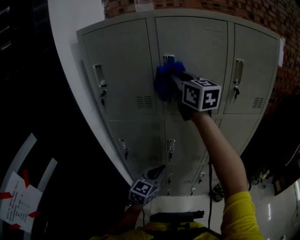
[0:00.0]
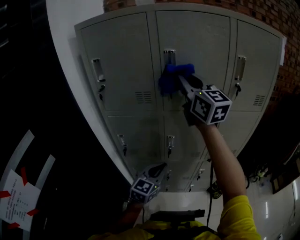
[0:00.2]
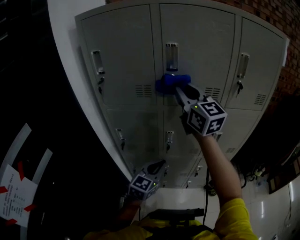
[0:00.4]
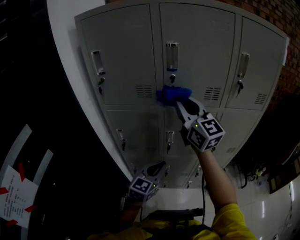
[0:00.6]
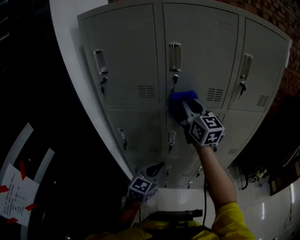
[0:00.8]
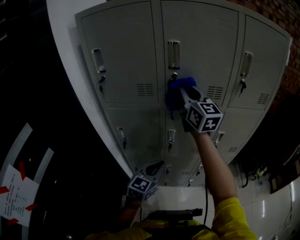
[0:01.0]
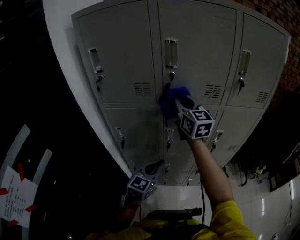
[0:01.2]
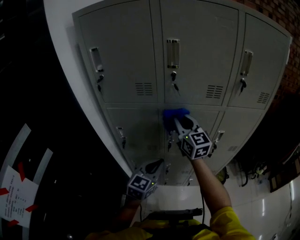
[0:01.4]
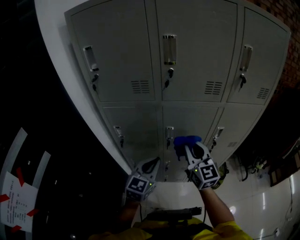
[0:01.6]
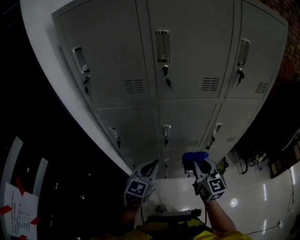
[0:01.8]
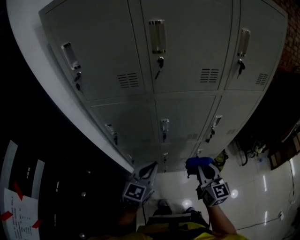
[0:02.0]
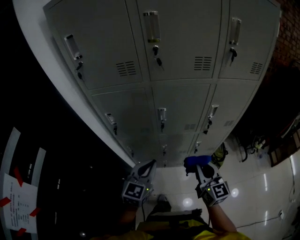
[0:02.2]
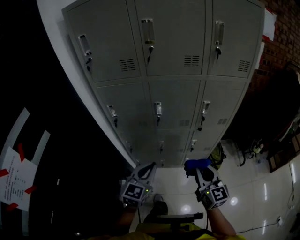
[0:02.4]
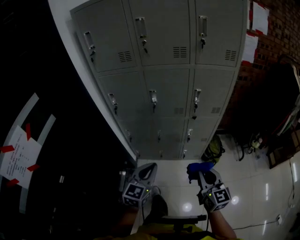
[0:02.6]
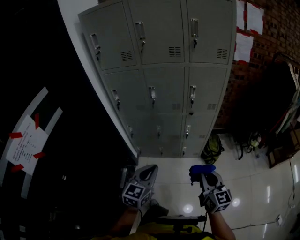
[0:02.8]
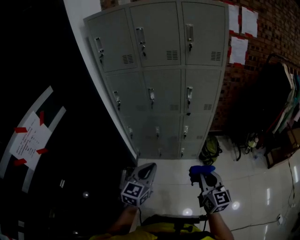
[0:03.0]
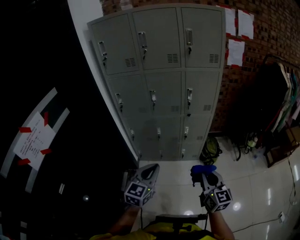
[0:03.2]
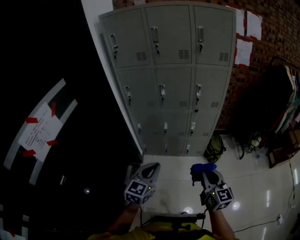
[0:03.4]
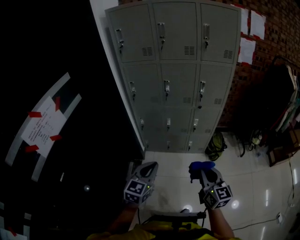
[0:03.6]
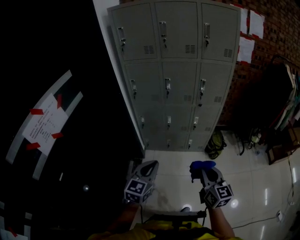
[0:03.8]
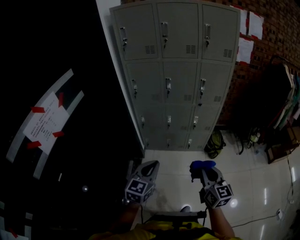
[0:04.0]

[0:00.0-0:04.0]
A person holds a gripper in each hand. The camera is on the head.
0:00.0 to 0:01.4: The right gripper moves downward, some 25 cm.
0:01.4 to 0:02.6: The right gripper goes about 50 cm backward, to the right and downward. Meanwhile the left gripper shifts about 25 cm backward.
0:02.6 to 0:04.0: Both grippers move backward, roughly 25 cm.

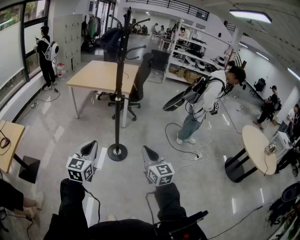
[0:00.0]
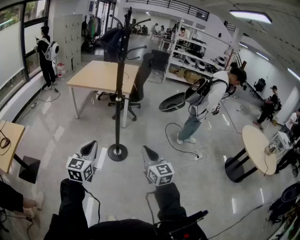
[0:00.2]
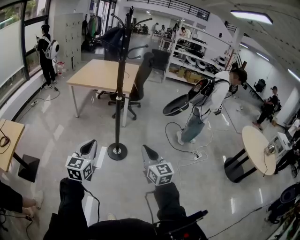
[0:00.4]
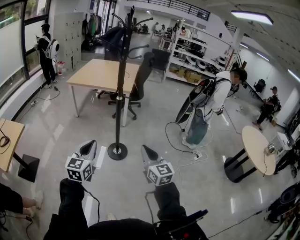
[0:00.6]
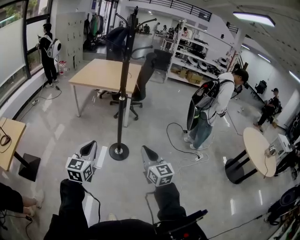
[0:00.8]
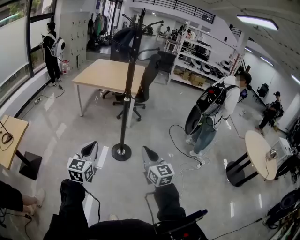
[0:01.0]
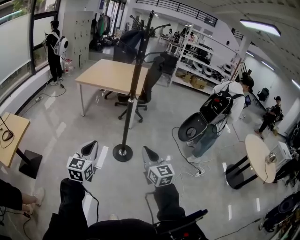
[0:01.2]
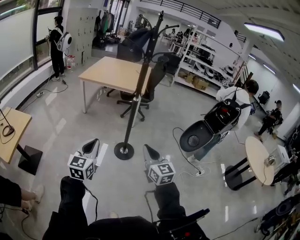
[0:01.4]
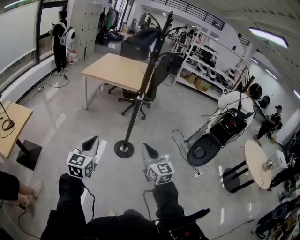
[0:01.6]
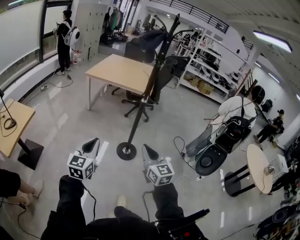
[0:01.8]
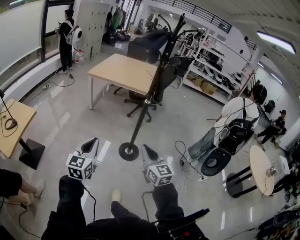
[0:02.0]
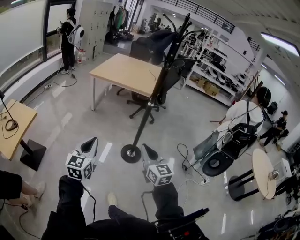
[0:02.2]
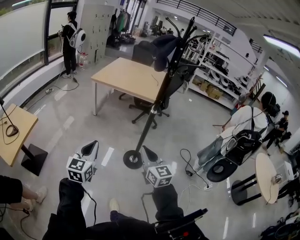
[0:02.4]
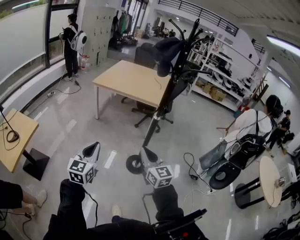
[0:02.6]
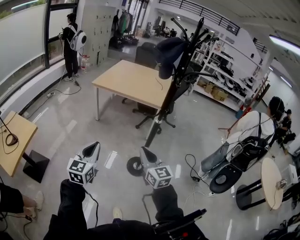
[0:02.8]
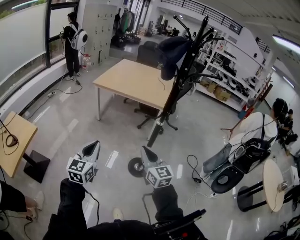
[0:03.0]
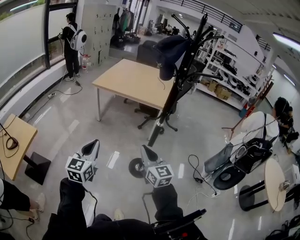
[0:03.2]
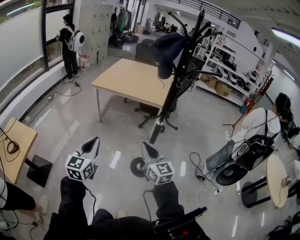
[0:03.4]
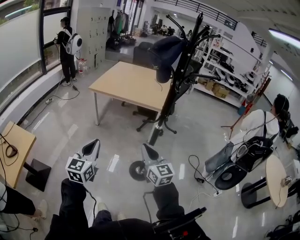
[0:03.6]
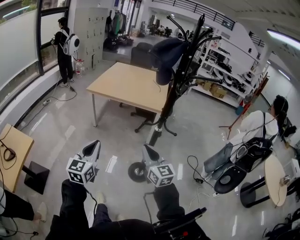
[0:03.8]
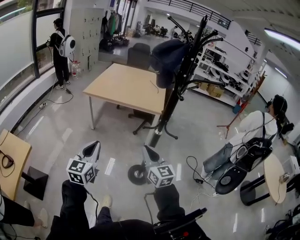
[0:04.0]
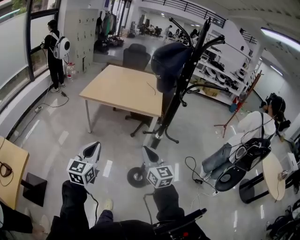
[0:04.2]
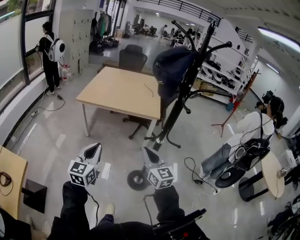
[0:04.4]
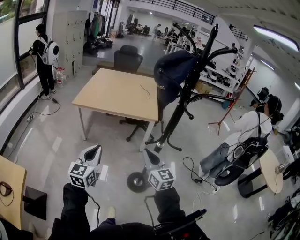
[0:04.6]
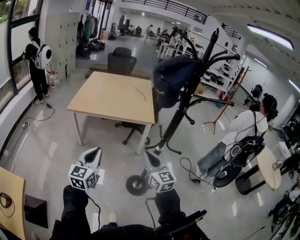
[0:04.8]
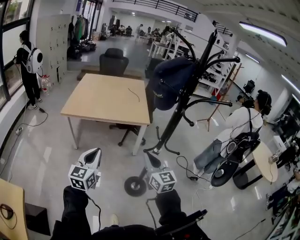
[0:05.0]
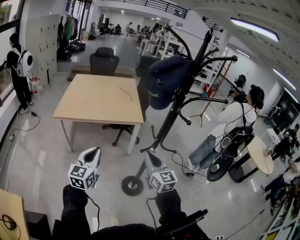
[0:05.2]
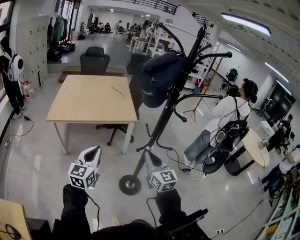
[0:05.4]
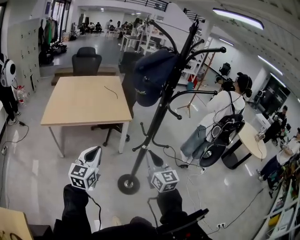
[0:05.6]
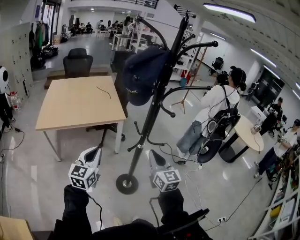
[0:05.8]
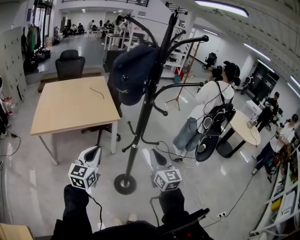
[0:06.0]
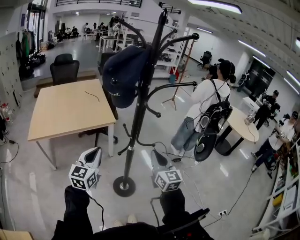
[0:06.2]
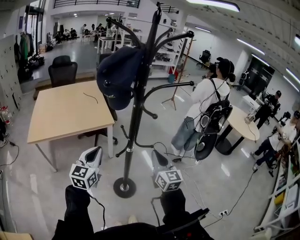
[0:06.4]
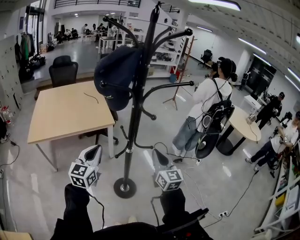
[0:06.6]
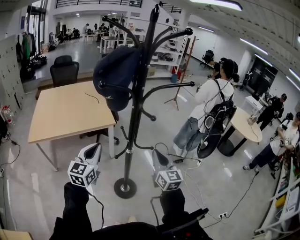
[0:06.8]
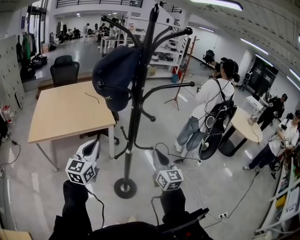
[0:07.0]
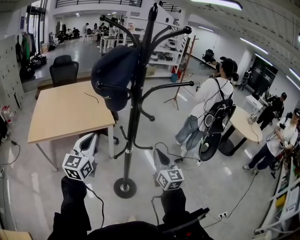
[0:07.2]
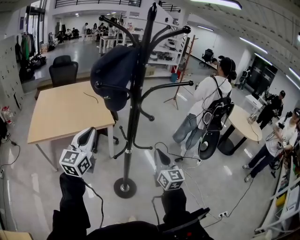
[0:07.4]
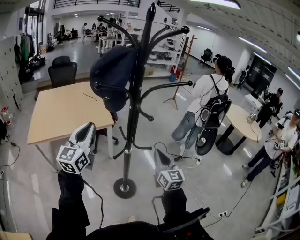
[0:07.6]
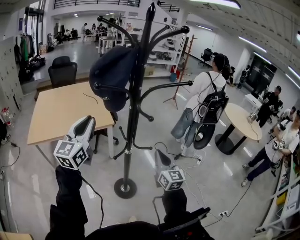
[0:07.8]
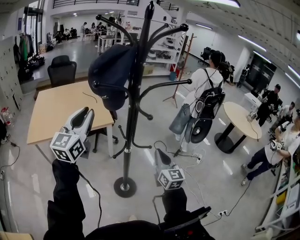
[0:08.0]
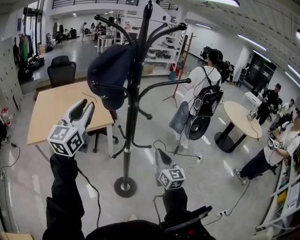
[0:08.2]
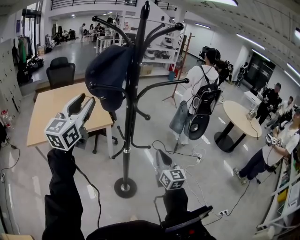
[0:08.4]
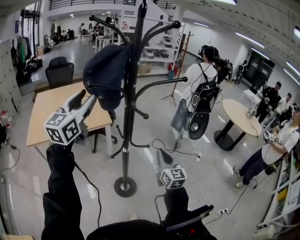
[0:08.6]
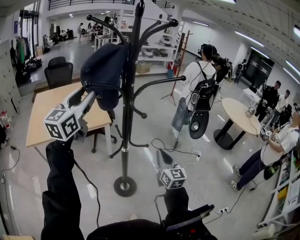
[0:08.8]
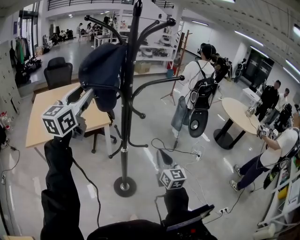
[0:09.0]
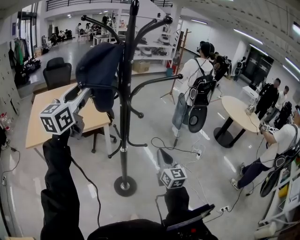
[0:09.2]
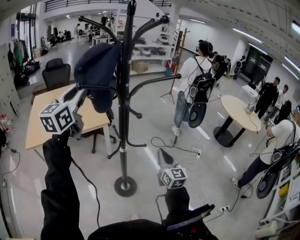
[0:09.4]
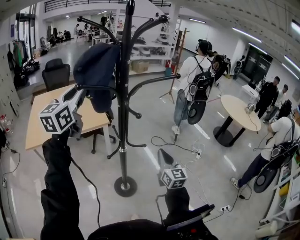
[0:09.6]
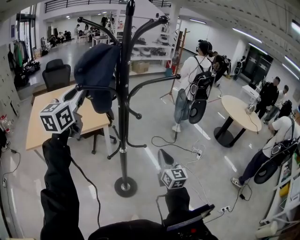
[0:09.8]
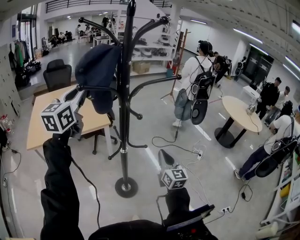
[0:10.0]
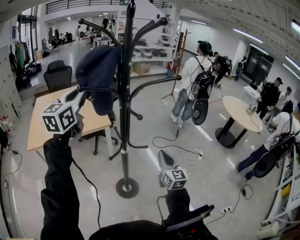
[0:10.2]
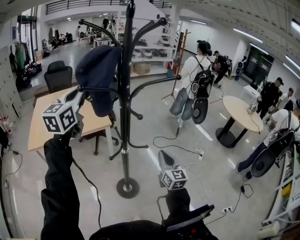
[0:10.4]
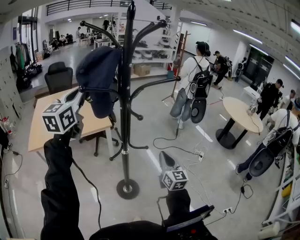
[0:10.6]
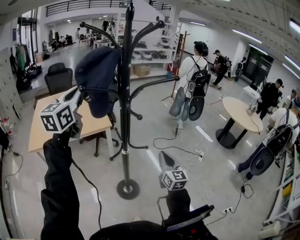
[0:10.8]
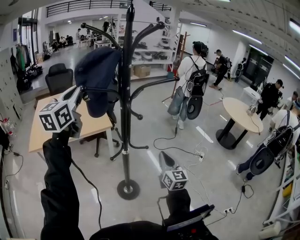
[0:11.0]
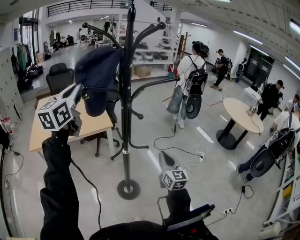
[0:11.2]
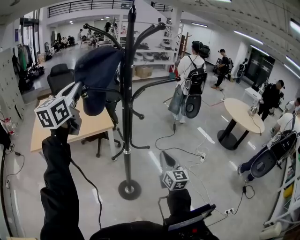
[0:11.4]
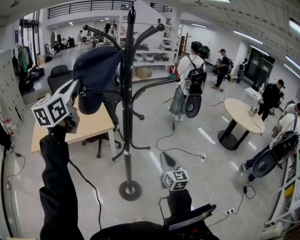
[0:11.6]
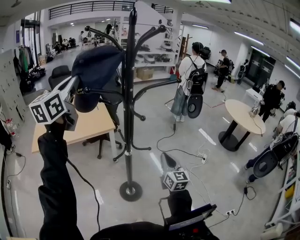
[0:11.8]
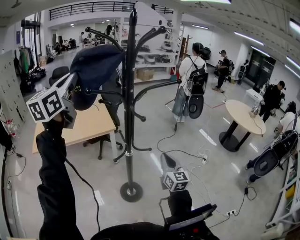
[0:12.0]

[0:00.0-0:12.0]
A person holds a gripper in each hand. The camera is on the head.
0:00.0 to 0:01.6: Both grippers travel together to the left, roughly 15 cm.
0:01.6 to 0:03.0: Both grippers travel together forward, some 20 cm.
0:03.0 to 0:04.4: Both grippers travel together forward, roughly 15 cm.
0:04.4 to 0:06.0: The right gripper moves about 10 cm, and turns by some 30 degrees, while the left gripper shifts by some 15 cm, and changes its angle by roughly 30 degrees.
0:06.0 to 0:07.6: The right gripper goes roughly 5 cm to the right. The left gripper travels upward and forward by approximately 15 cm.
0:07.6 to 0:09.0: The left gripper goes roughly 15 cm upward and forward, and opens up.
0:09.0 to 0:10.4: The left gripper closes up.
0:10.4 to 0:12.0: The left gripper shifts some 10 cm upward.

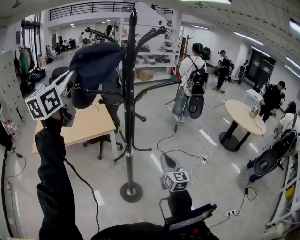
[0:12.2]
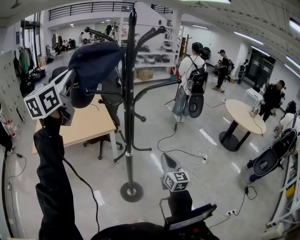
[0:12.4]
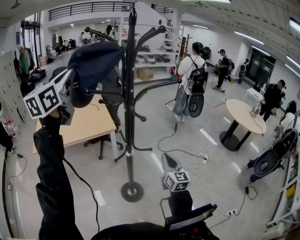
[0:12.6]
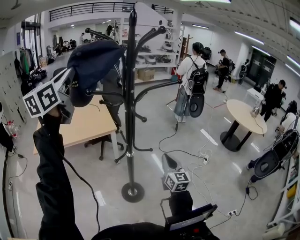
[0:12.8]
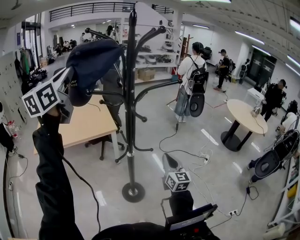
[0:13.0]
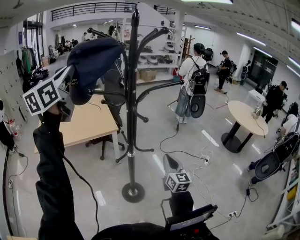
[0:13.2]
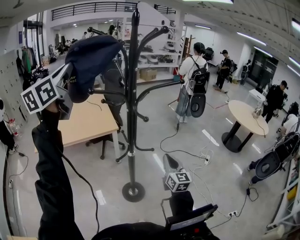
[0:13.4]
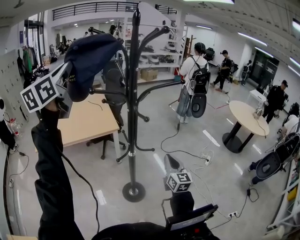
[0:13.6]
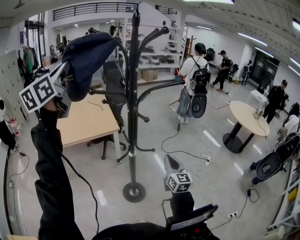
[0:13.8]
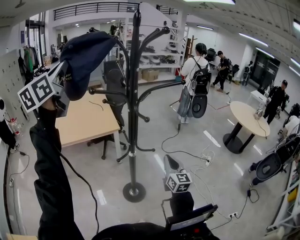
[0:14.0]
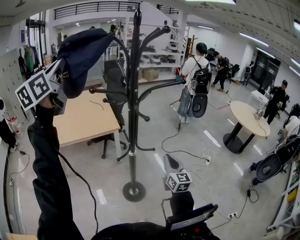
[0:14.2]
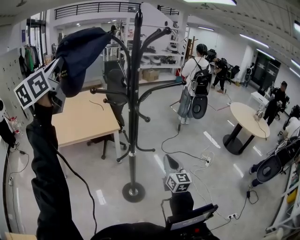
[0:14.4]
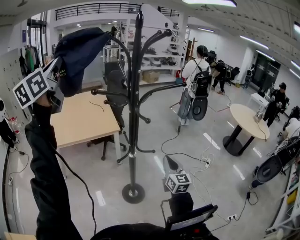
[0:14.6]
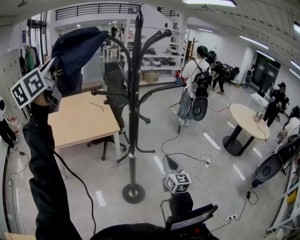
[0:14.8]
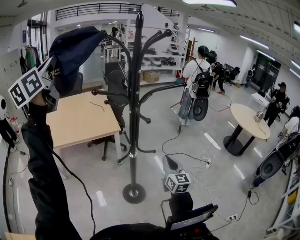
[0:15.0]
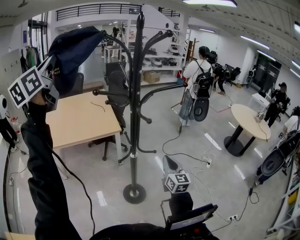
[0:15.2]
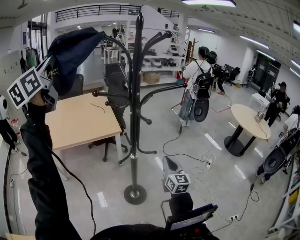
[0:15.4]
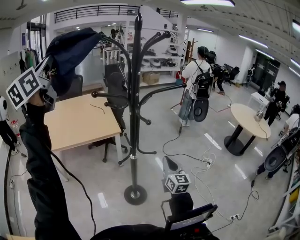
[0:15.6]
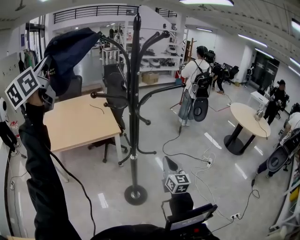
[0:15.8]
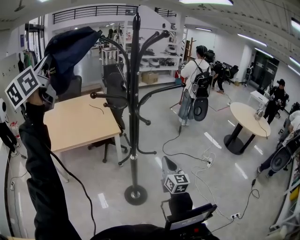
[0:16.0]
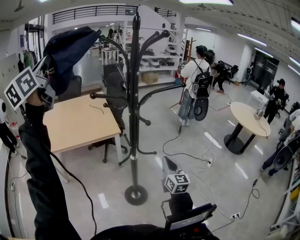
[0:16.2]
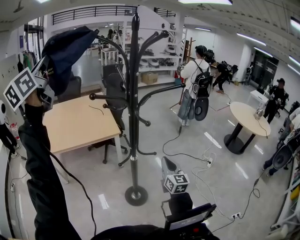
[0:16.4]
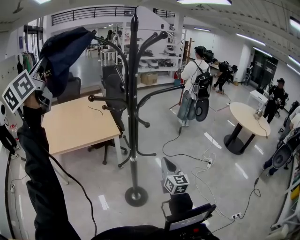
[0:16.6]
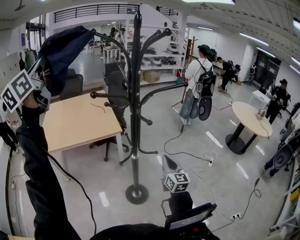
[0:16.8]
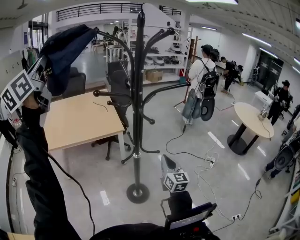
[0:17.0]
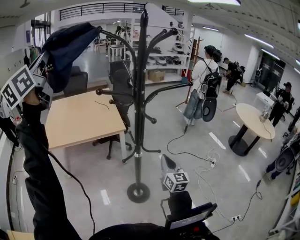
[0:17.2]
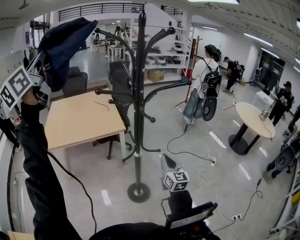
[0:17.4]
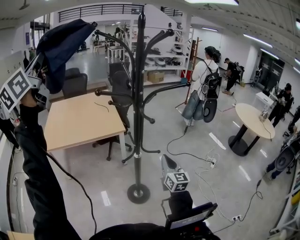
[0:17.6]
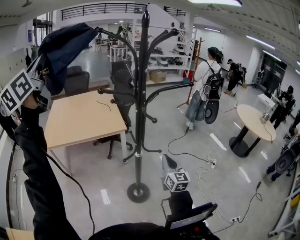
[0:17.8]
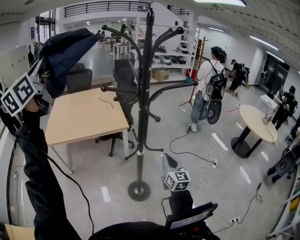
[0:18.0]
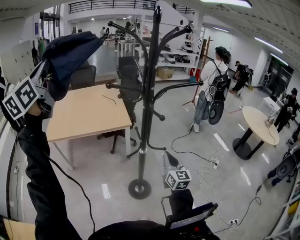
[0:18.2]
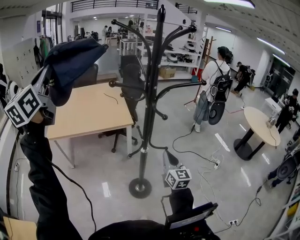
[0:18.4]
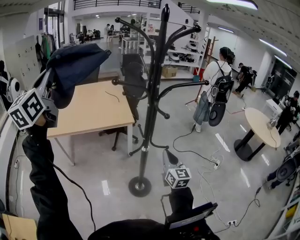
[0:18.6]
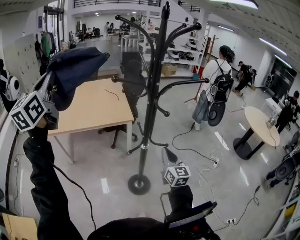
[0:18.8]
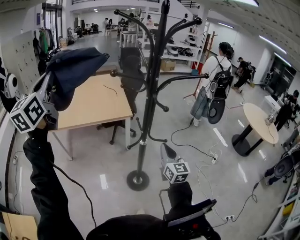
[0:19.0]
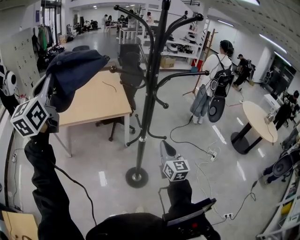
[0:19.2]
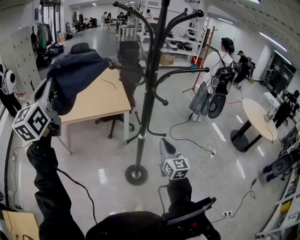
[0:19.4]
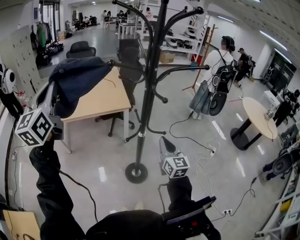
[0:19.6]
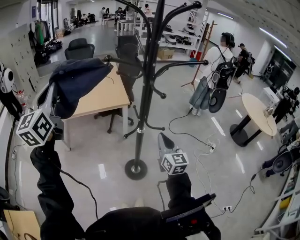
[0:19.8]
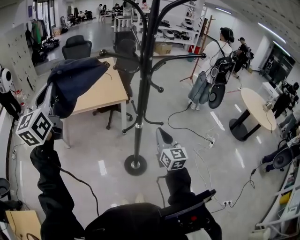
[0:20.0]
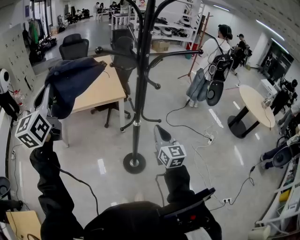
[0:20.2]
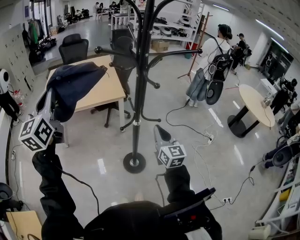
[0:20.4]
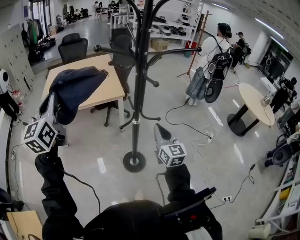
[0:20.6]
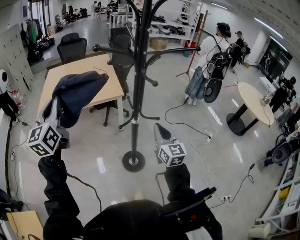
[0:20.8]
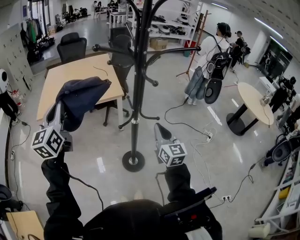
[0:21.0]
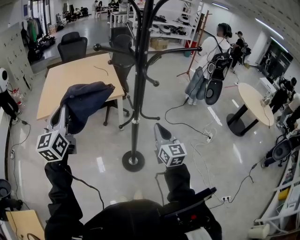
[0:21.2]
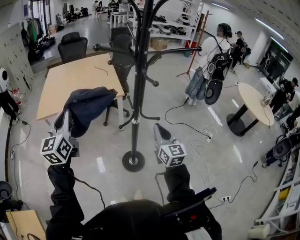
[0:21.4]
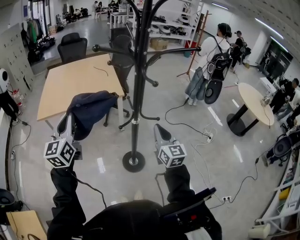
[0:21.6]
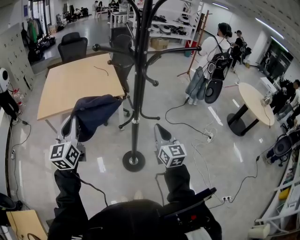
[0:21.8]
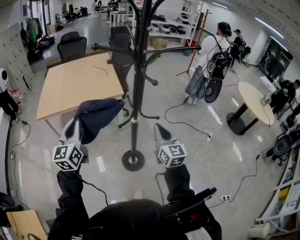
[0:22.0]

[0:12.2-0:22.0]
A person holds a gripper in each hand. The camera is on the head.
0:12.2 to 0:13.6: The grippers stay close to where they were, moving slightly.
0:13.6 to 0:15.0: The left gripper travels to the left by roughly 5 cm.
0:15.0 to 0:16.4: The grippers stay close to where they were, moving slightly.
0:16.4 to 0:17.8: The left gripper shifts by roughly 5 cm.
0:17.8 to 0:19.2: The left gripper travels downward by approximately 15 cm.
0:19.2 to 0:20.6: The left gripper heads downward, covering some 10 cm.
0:20.6 to 0:22.0: The left gripper goes approximately 15 cm downward and to the right.
